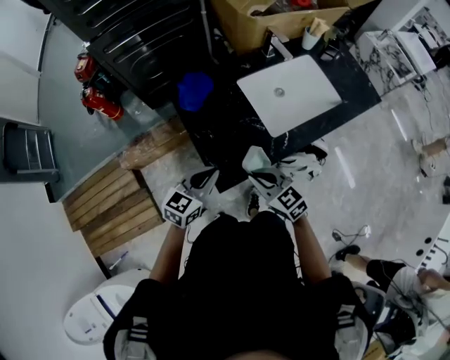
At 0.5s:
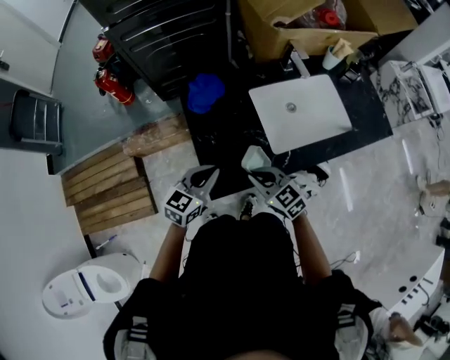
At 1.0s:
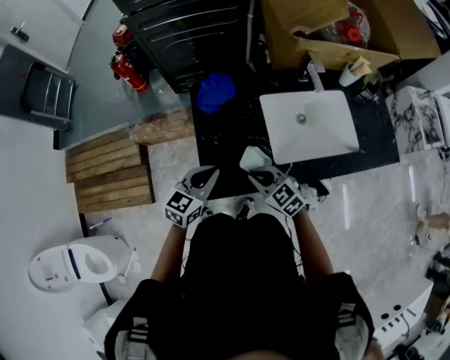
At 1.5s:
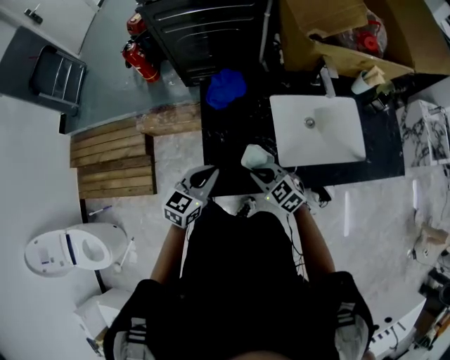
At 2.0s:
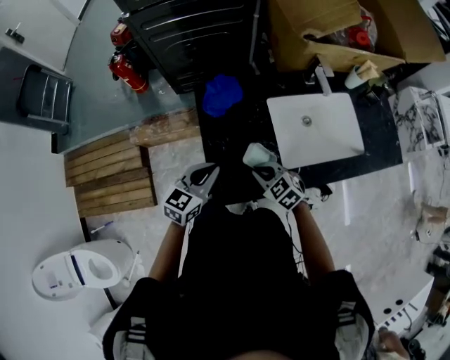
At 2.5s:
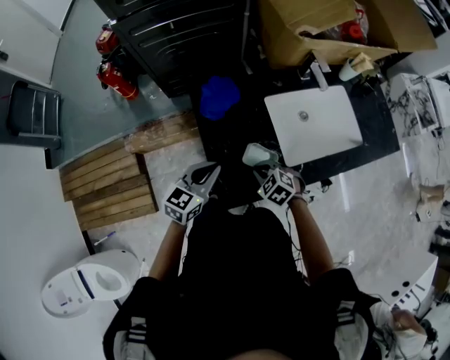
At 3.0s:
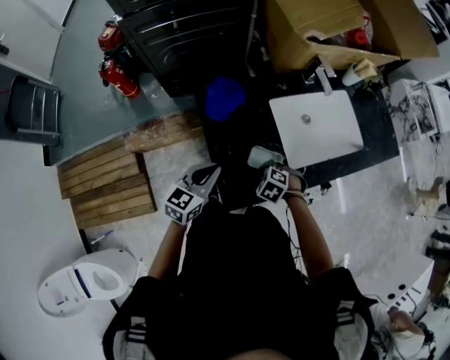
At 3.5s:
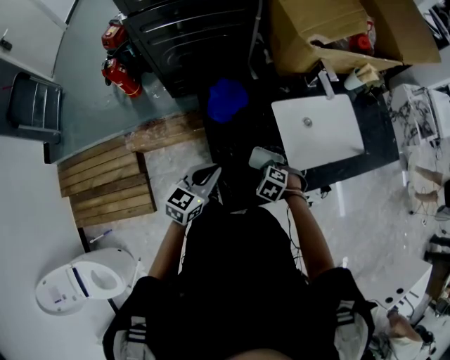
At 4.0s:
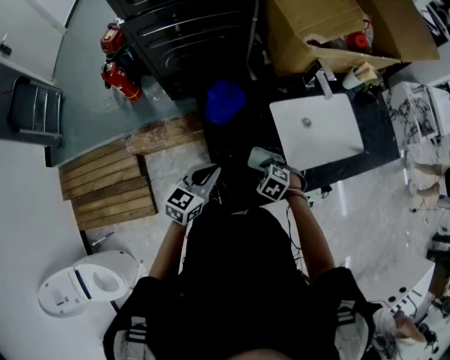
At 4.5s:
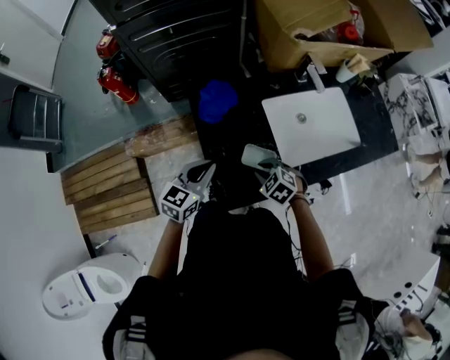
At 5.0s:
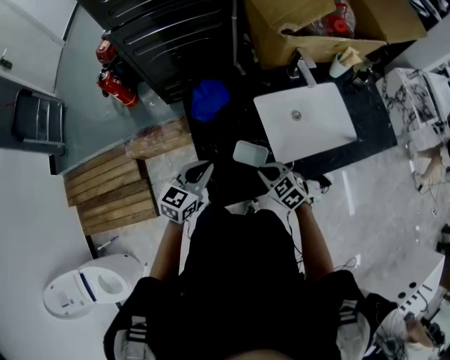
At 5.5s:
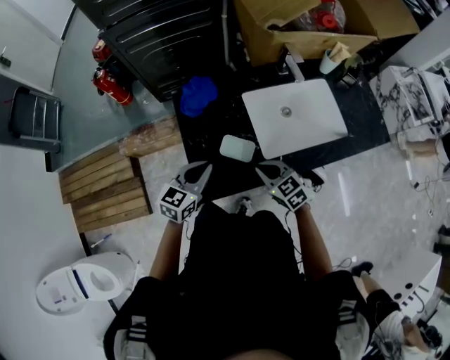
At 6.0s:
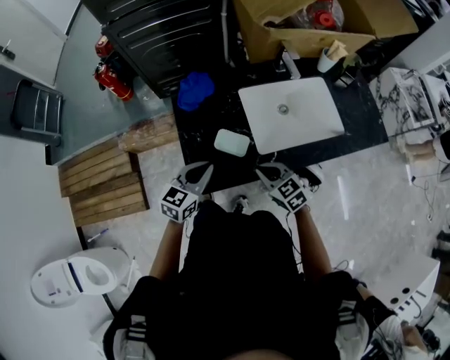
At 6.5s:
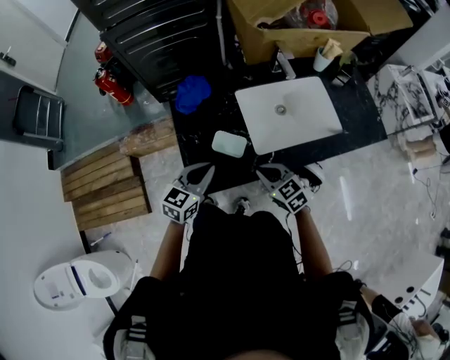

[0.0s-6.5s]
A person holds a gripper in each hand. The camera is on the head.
0.0s to 2.0s: The right gripper goes roughly 15 cm forward and downward, and swivels approximately 30 degrees. The left gripper is displaced forward by some 10 cm.
4.5s to 6.5s: The left gripper travels to the right and backward by approximately 15 cm; the right gripper shifts some 15 cm to the right, backward and upward, and rotates approximately 30 degrees.

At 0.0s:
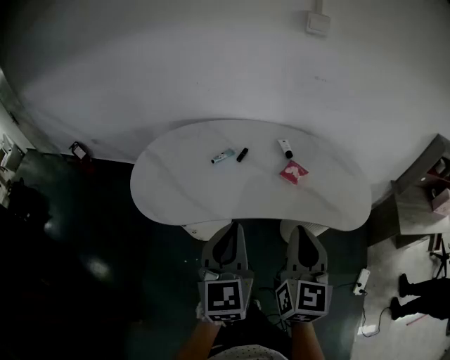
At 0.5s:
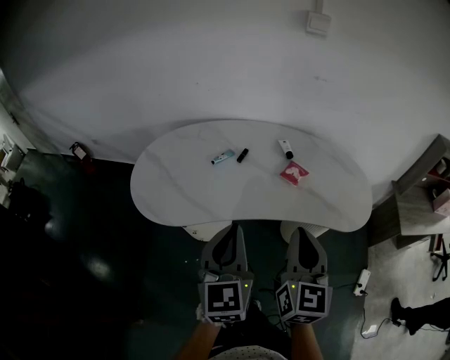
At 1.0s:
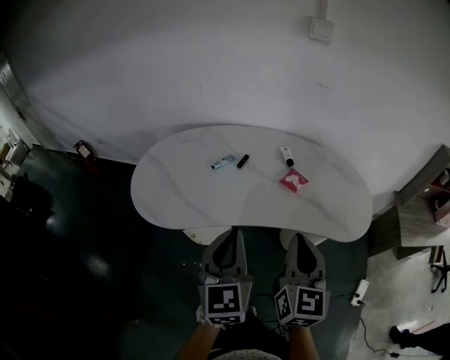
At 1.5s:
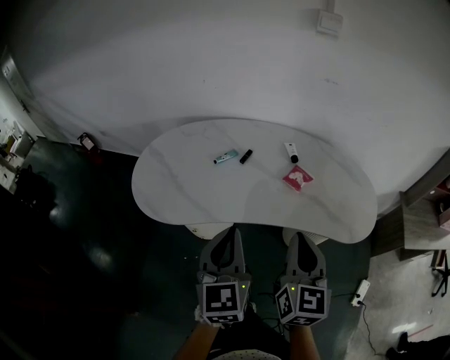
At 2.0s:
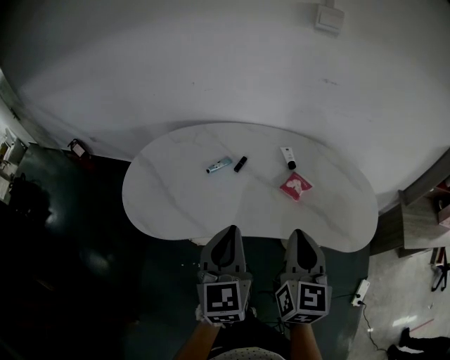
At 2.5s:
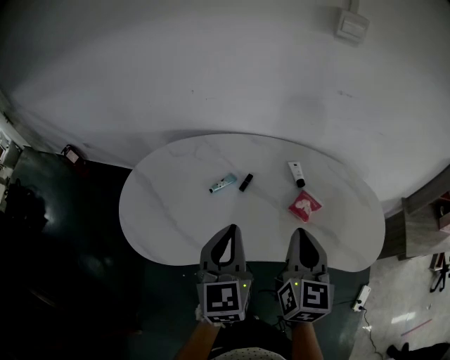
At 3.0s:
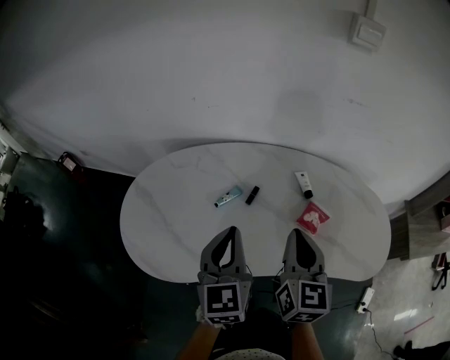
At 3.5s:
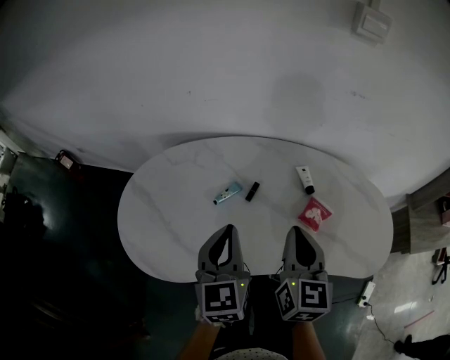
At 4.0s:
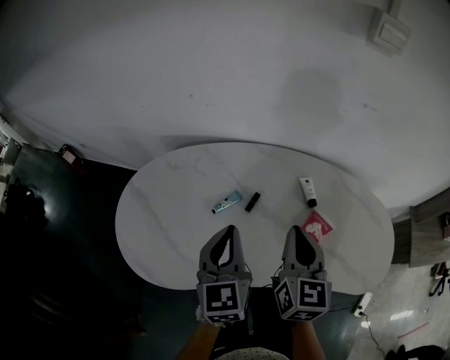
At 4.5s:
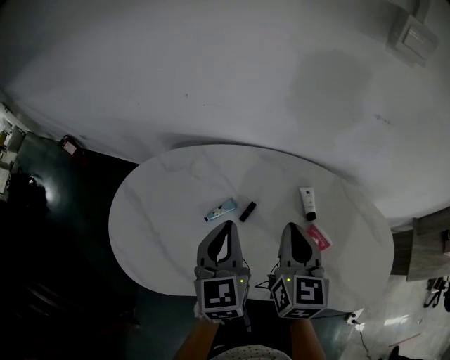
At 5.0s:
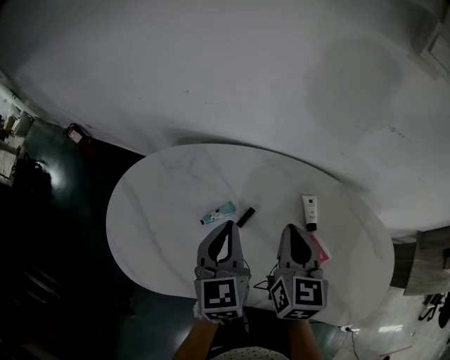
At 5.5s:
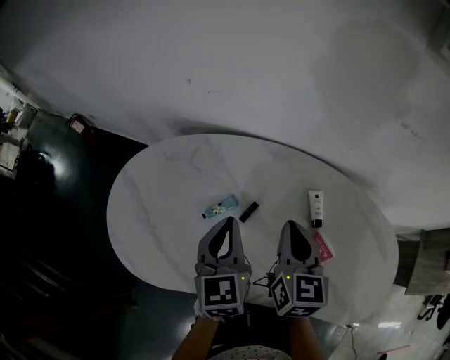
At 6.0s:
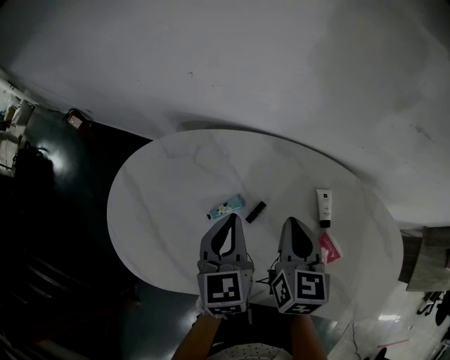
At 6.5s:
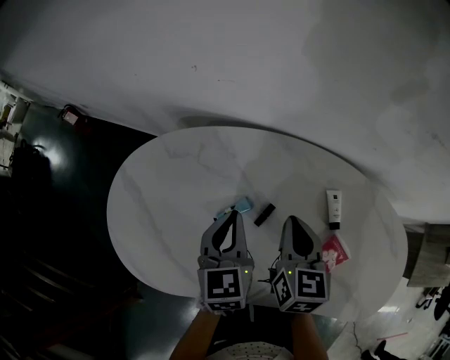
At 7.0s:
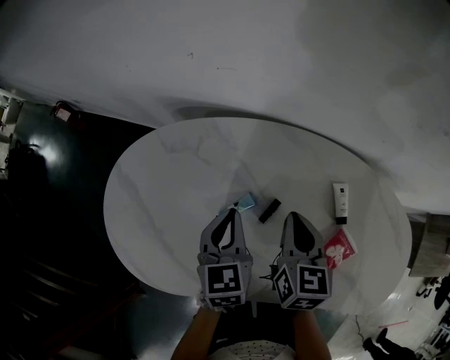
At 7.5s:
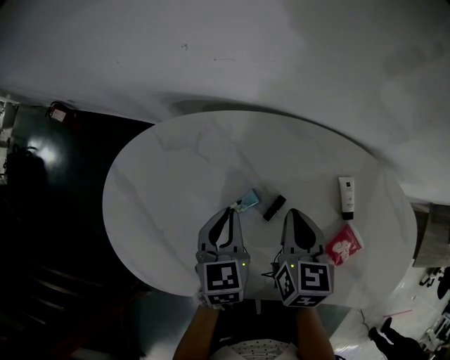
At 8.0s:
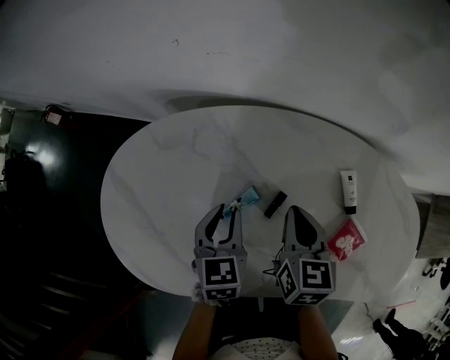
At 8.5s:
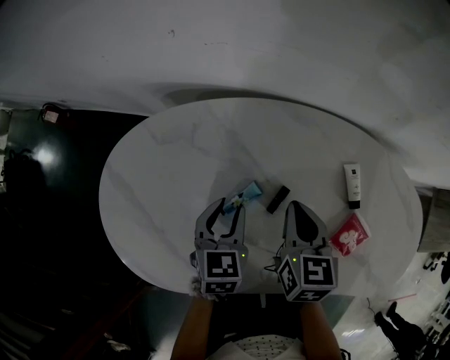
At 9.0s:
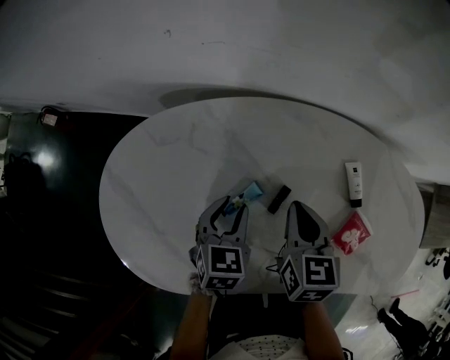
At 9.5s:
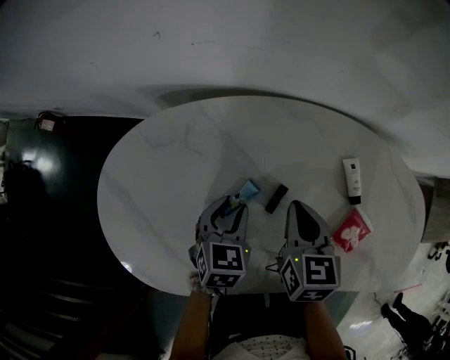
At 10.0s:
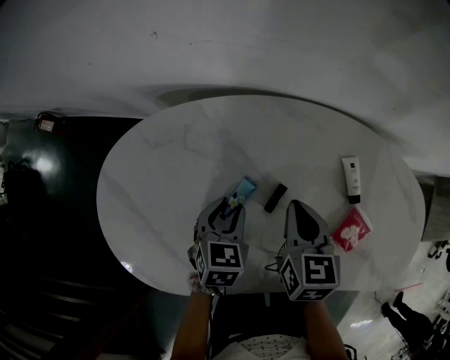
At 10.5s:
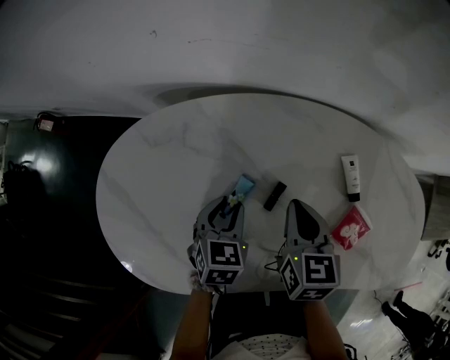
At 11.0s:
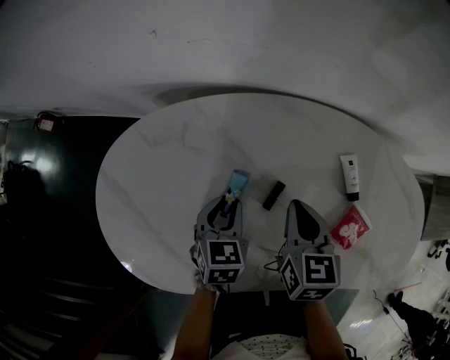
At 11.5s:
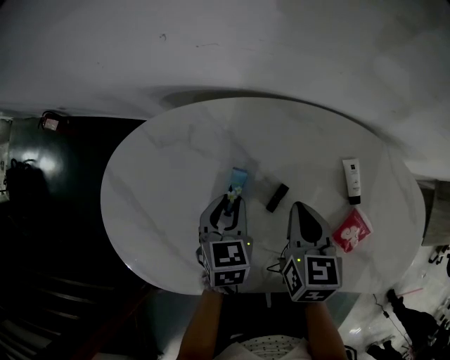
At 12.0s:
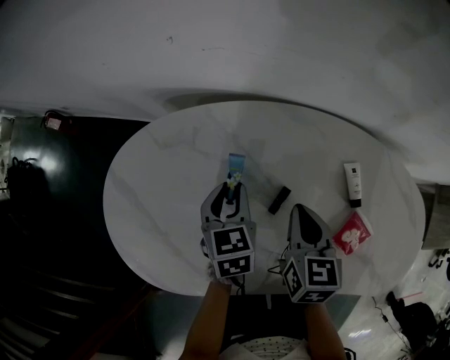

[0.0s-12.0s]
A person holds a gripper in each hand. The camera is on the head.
0.0s to 2.0s: The two grippers go about 10 cm forward.
2.0s to 4.0s: Both grippers travel together forward, about 20 cm.
4.0s to 6.0s: The grippers both shift forward and downward by some 15 cm.
6.0s to 8.0s: The left gripper heads downward and to the left, covering about 15 cm, and opens; the right gripper is displaced downward by roughly 10 cm.
8.0s to 10.0s: The left gripper shifts approximately 5 cm downward.
10.0s to 12.0s: The left gripper travels forward by some 5 cm, and changes its angle by roughly 20 degrees.

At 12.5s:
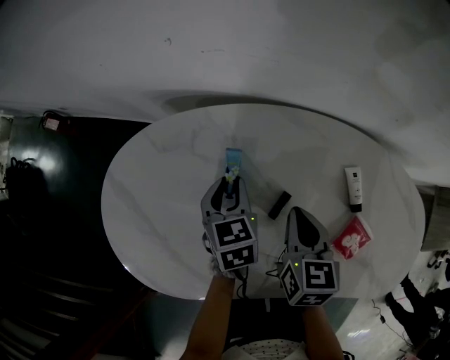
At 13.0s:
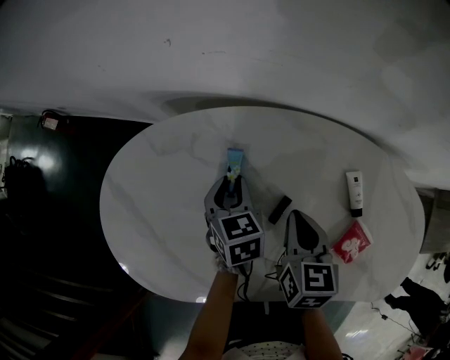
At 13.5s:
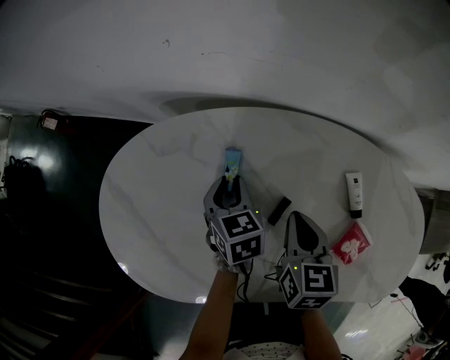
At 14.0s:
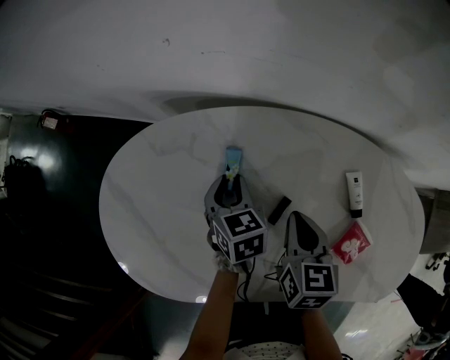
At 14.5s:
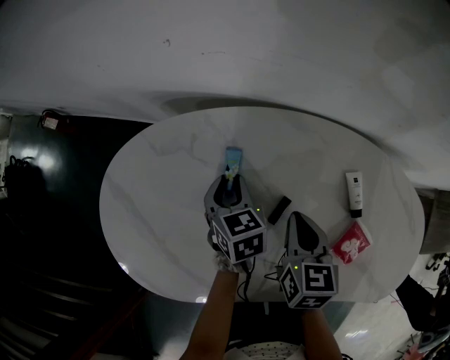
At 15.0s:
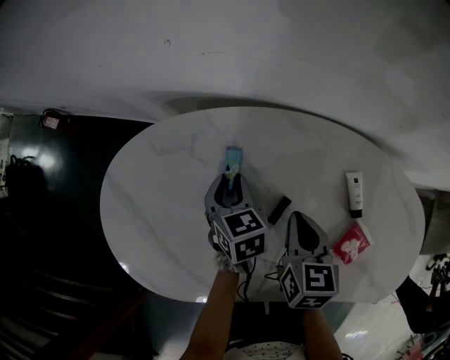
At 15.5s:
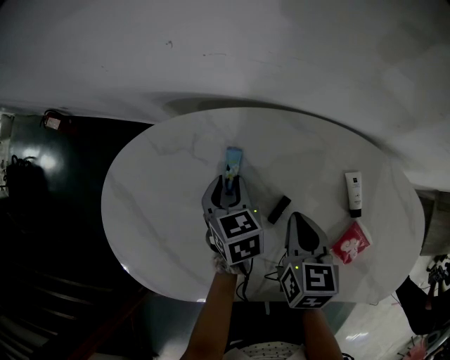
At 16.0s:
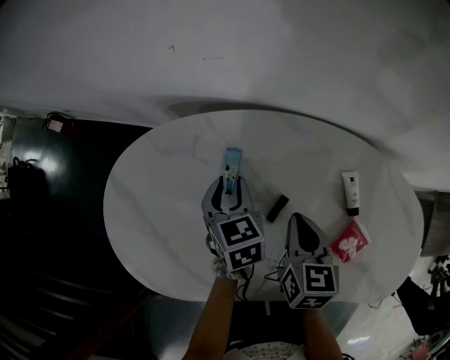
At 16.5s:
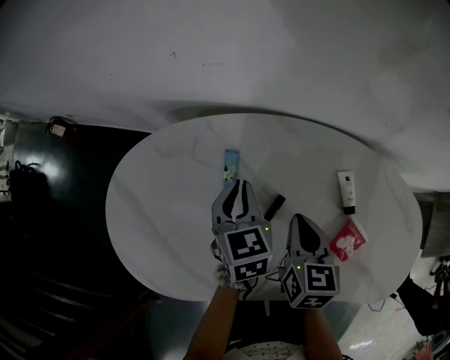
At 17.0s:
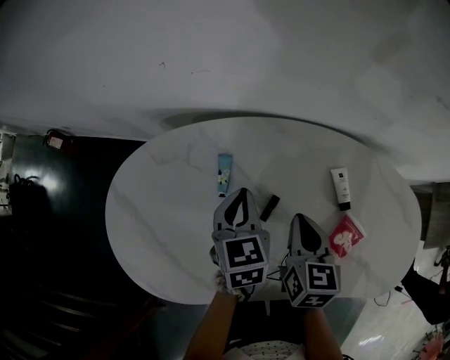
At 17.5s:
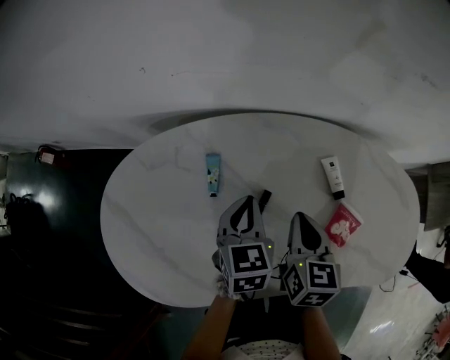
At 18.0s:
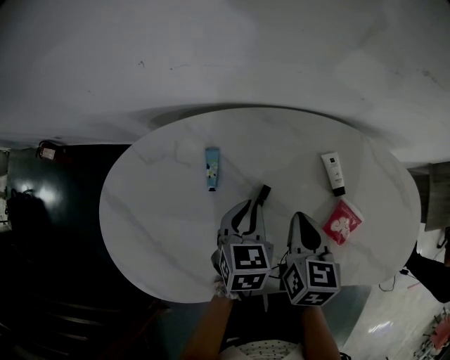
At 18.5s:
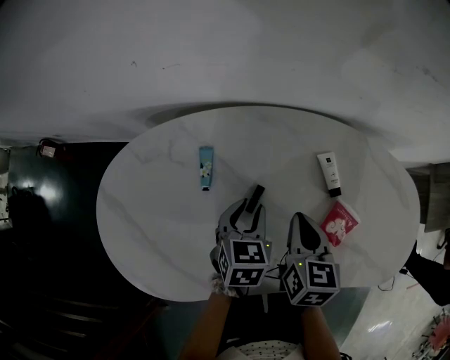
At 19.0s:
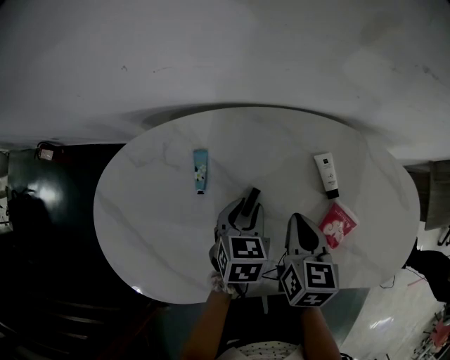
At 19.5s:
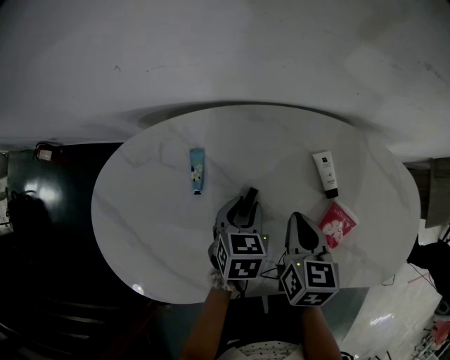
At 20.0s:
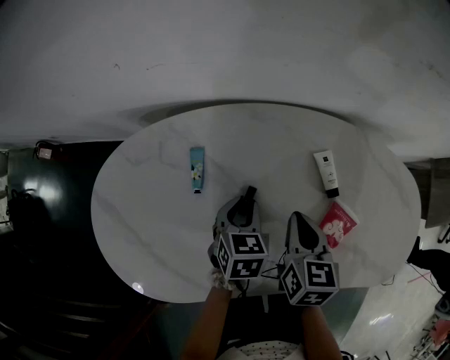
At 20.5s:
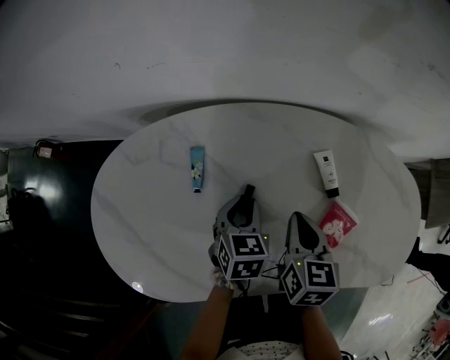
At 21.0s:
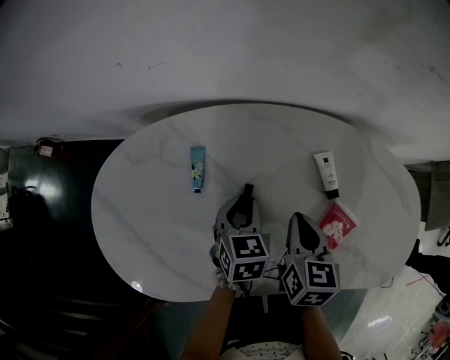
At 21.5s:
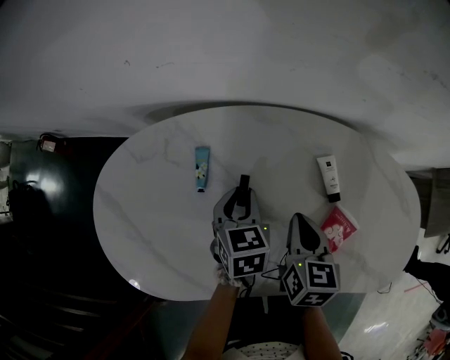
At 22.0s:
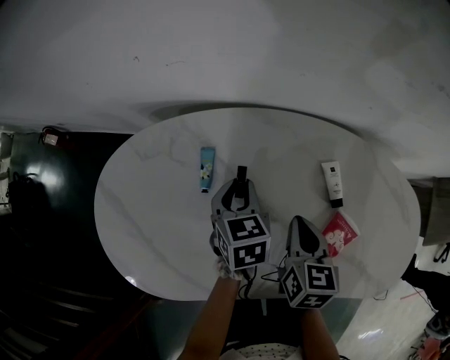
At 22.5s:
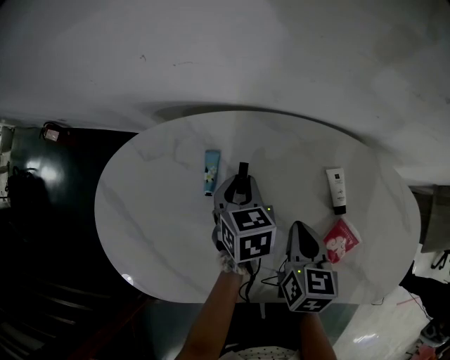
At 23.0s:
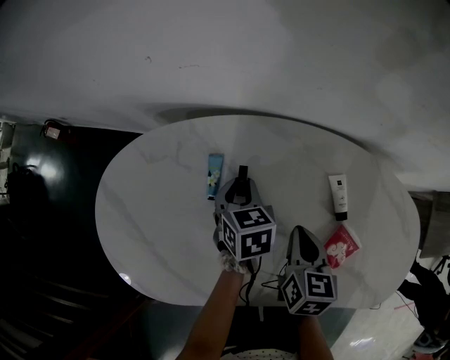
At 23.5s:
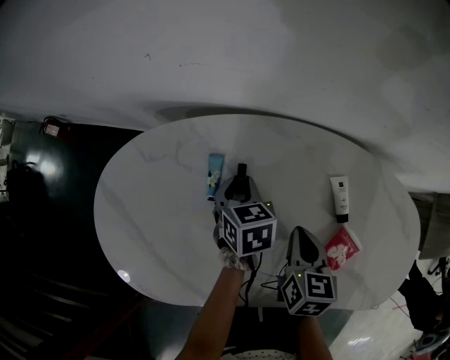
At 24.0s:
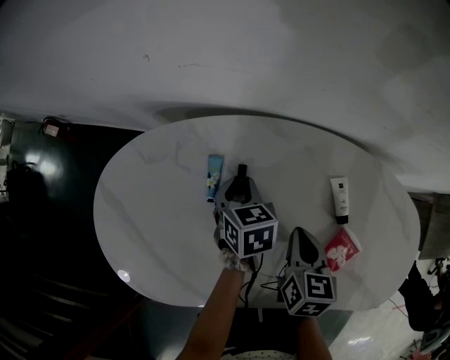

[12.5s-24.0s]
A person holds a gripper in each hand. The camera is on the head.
12.5s to 14.5s: The grippers make only small movements.
14.5s to 16.5s: The left gripper heads upward, covering roughly 10 cm, and closes.
16.5s to 18.5s: The left gripper shifts approximately 10 cm to the right, backward and downward, changes its angle by roughly 20 degrees, and opens. Meanwhile the right gripper travels to the right by some 5 cm.
18.5s to 20.0s: There are only small adjustments of the grippers.
20.0s to 22.0s: The left gripper moves forward, about 5 cm.
22.0s to 24.0s: The left gripper shifts by roughly 5 cm.
